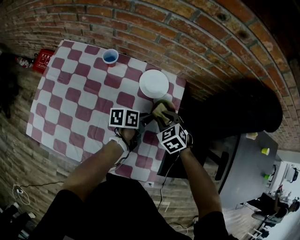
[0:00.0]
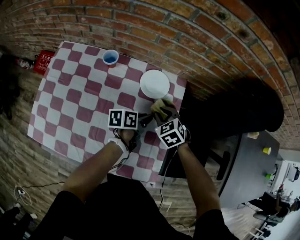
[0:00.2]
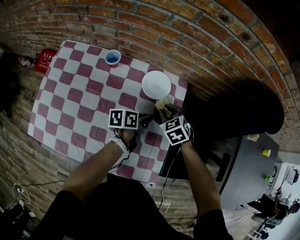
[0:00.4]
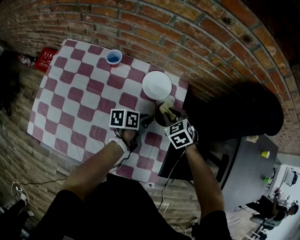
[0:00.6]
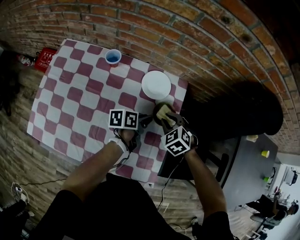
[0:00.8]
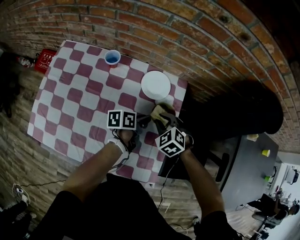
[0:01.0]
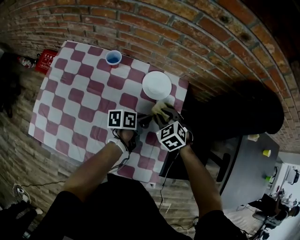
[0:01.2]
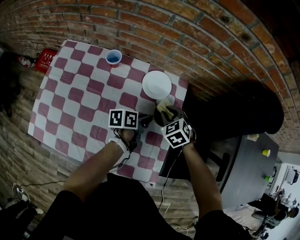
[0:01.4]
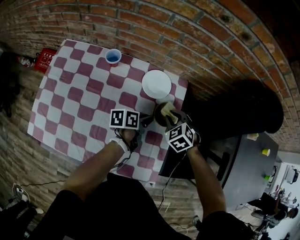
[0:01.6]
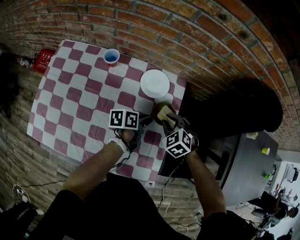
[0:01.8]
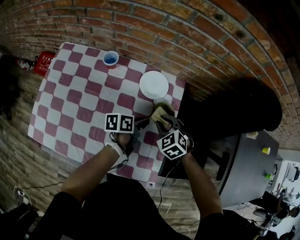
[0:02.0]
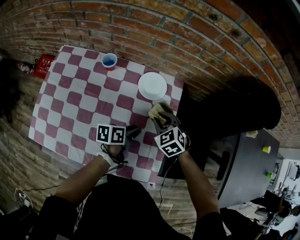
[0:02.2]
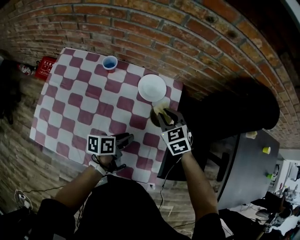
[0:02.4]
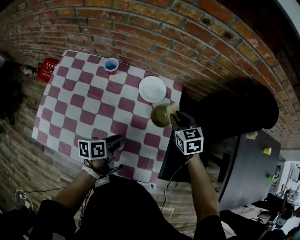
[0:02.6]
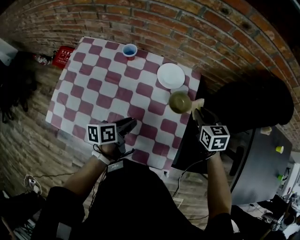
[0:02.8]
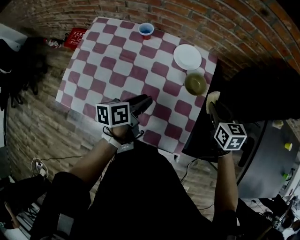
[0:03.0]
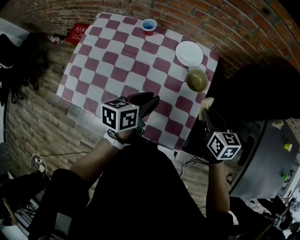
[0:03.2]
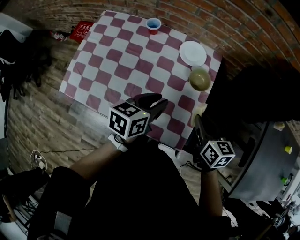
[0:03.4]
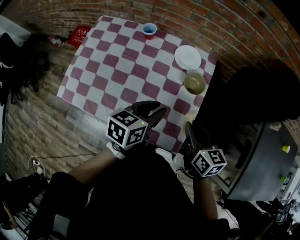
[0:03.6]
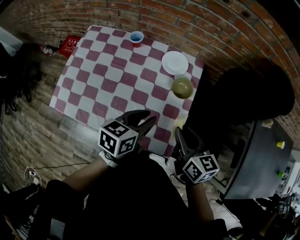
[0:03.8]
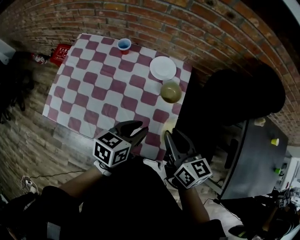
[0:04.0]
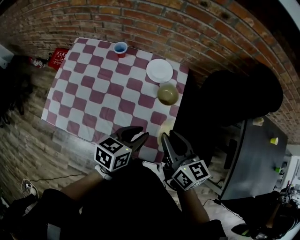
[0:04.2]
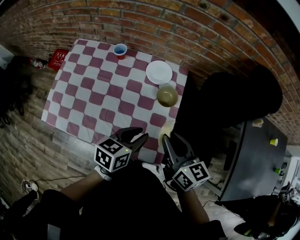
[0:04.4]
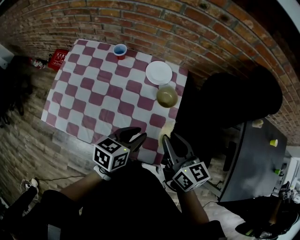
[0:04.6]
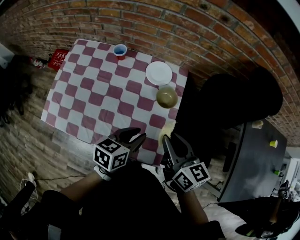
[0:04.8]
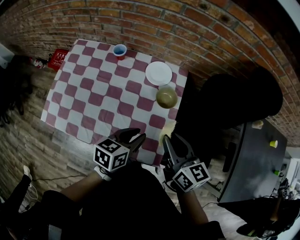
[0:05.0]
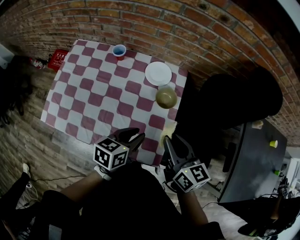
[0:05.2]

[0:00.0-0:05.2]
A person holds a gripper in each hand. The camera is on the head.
0:00.0 to 0:01.8: The grippers stay close to where they were, moving slightly.
0:01.8 to 0:03.4: The grippers both shift backward and upward by roughly 20 cm. The left gripper rotates some 30 degrees, while the right gripper twists about 60 degrees clockwise, seen from behind.
0:03.4 to 0:05.2: The right gripper moves upward, roughly 10 cm. The left gripper shifts about 5 cm to the right.

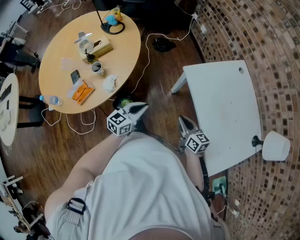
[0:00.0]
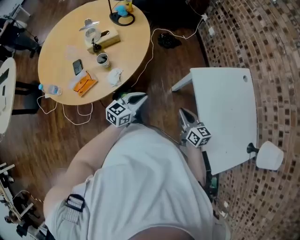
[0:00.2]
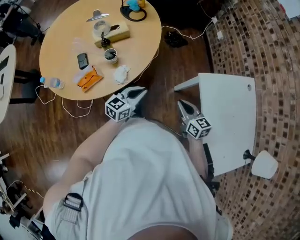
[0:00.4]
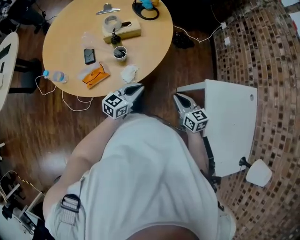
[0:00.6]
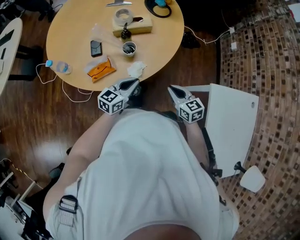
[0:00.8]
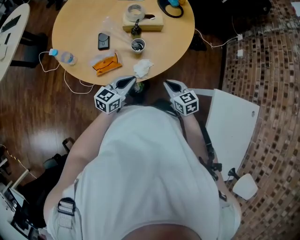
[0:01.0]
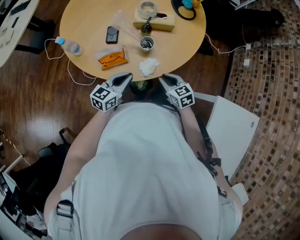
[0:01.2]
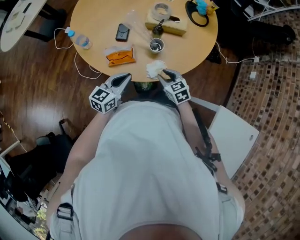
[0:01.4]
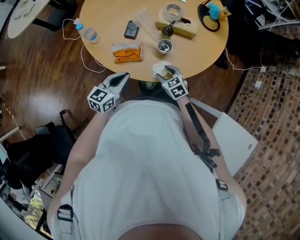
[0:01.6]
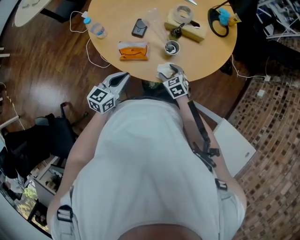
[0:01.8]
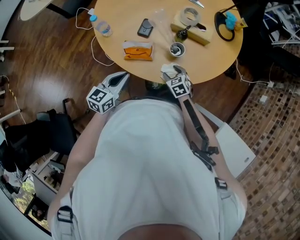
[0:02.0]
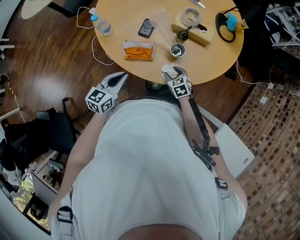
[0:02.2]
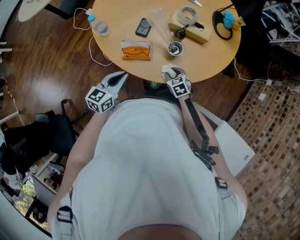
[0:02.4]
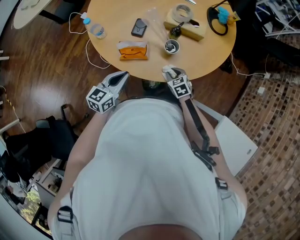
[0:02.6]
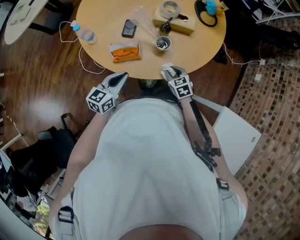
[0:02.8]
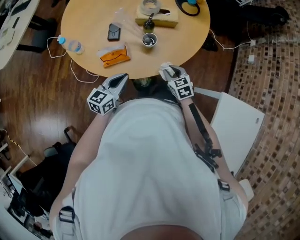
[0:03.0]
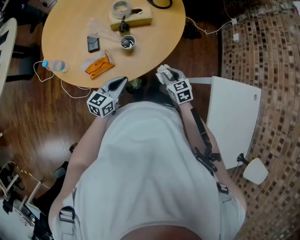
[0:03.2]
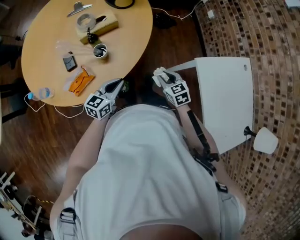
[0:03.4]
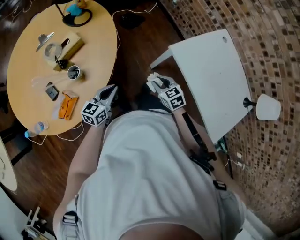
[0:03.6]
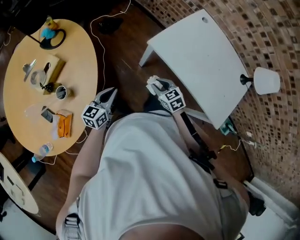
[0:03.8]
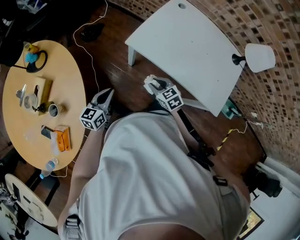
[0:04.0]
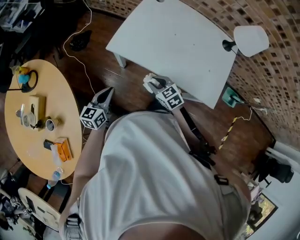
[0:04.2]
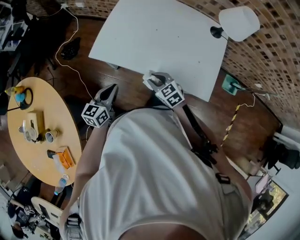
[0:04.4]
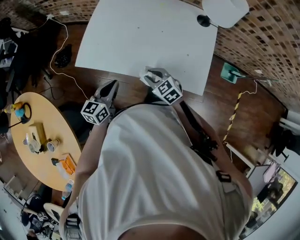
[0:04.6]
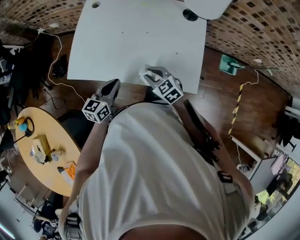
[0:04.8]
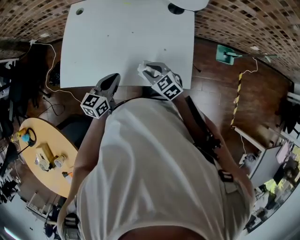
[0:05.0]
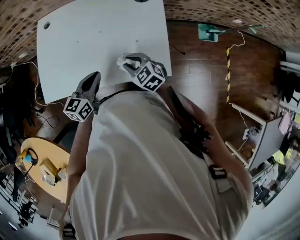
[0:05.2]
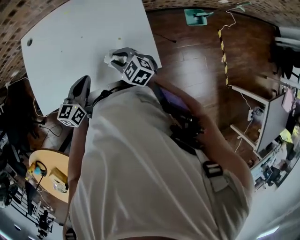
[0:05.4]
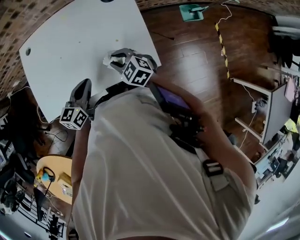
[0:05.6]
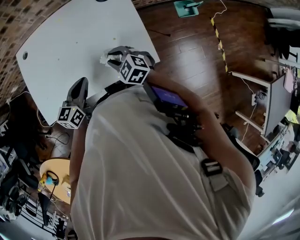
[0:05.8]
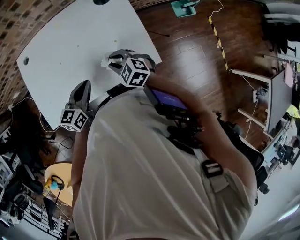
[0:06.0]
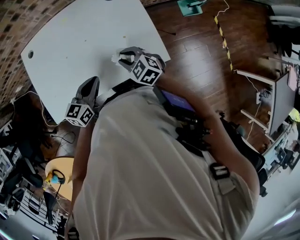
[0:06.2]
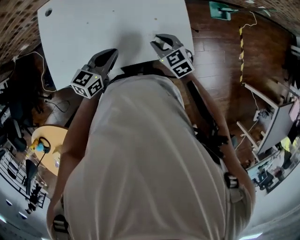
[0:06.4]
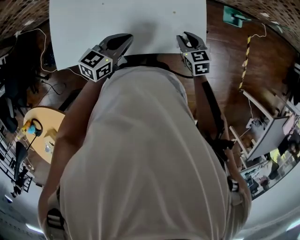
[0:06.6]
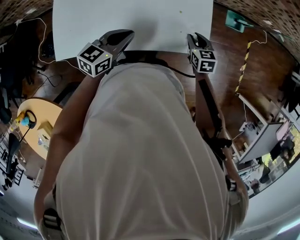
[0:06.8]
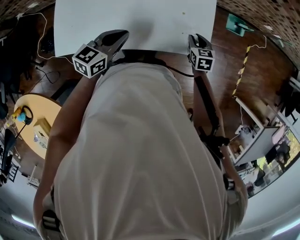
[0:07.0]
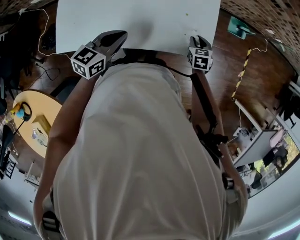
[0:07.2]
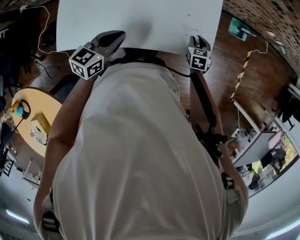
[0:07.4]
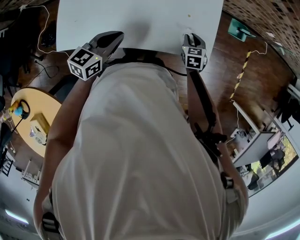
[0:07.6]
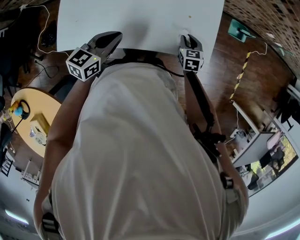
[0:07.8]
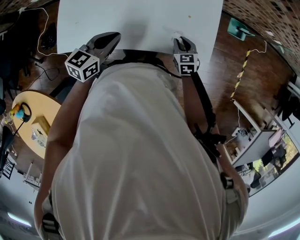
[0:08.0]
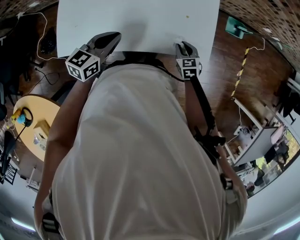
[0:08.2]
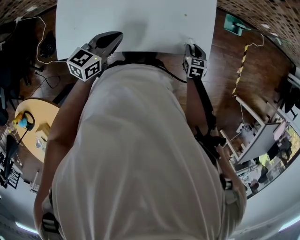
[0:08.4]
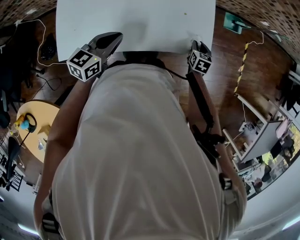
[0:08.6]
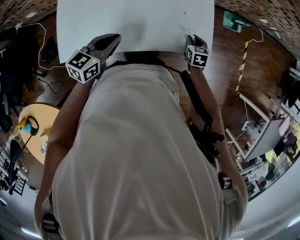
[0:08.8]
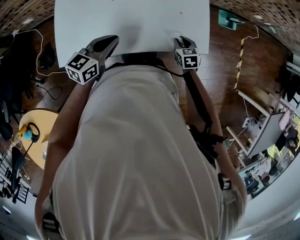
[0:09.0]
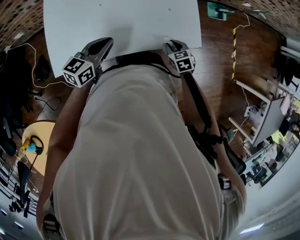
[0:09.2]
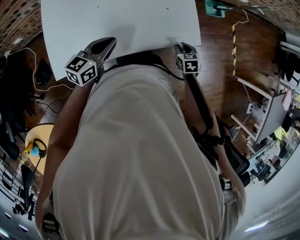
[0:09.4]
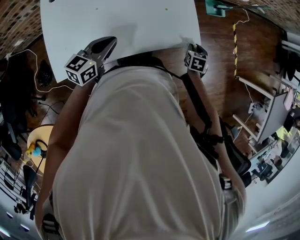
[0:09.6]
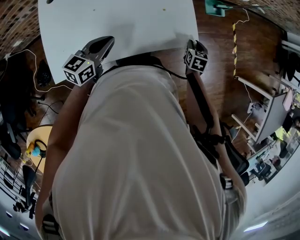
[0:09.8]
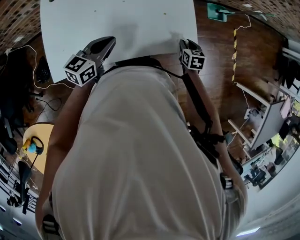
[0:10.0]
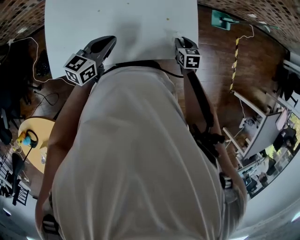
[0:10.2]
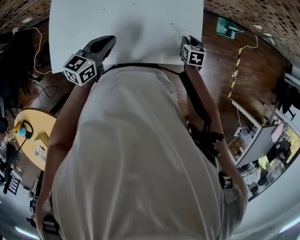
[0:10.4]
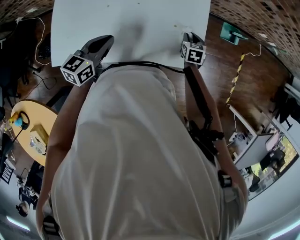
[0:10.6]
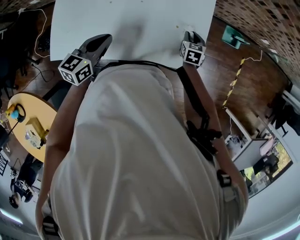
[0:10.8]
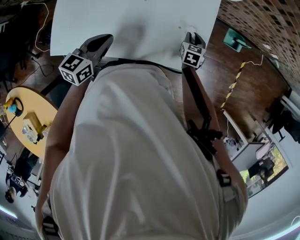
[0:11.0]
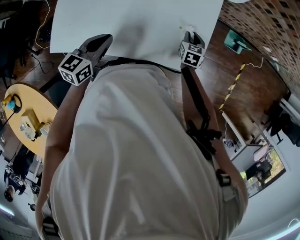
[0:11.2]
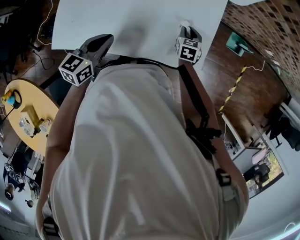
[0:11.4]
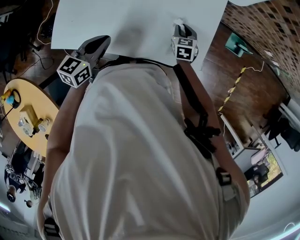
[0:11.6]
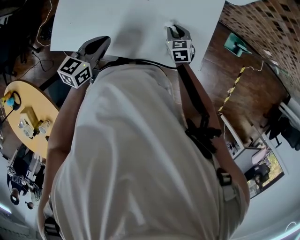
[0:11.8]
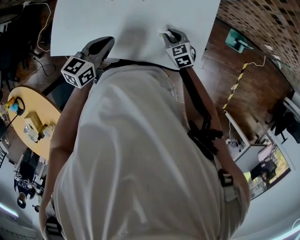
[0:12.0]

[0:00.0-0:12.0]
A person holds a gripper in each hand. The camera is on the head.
0:00.0 to 0:01.6: The left gripper shifts by approximately 35 cm, and rotates approximately 50 degrees. The right gripper moves about 50 cm, swivels some 80 degrees, and opens up.
0:01.6 to 0:03.0: The right gripper shifts about 5 cm to the right, reaches approximately 5 cm downward, then returns, rotates about 20 degrees, and closes up.
0:03.0 to 0:04.4: The pair of grippers is taken approximately 50 cm. The right gripper changes its angle by approximately 70 degrees; the left gripper changes its angle by approximately 70 degrees.
0:04.4 to 0:06.0: The left gripper shifts by approximately 30 cm, and rotates some 40 degrees. Meanwhile the right gripper ends up some 25 cm from where it was, and rotates about 20 degrees.
0:06.0 to 0:07.6: The left gripper moves to the left, approximately 5 cm, while the right gripper goes some 15 cm downward and to the right, and rotates about 30 degrees.
0:07.6 to 0:09.0: The right gripper moves left and right over approximately 10 cm, changing direction 2 times.
0:09.0 to 0:10.4: The left gripper heads forward, covering some 5 cm; the right gripper goes some 15 cm forward and to the right.
0:10.4 to 0:12.0: The right gripper ends up some 15 cm from where it was, and turns by approximately 40 degrees.

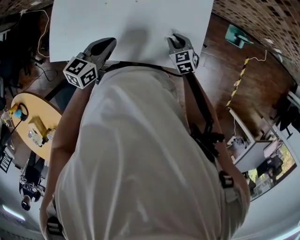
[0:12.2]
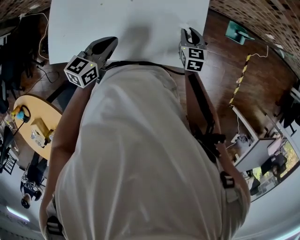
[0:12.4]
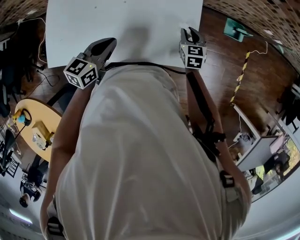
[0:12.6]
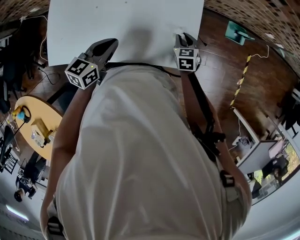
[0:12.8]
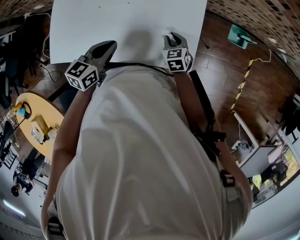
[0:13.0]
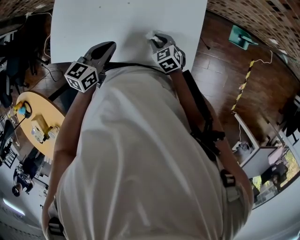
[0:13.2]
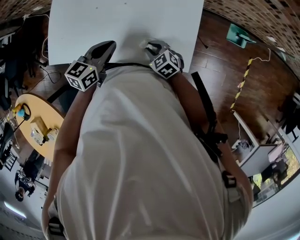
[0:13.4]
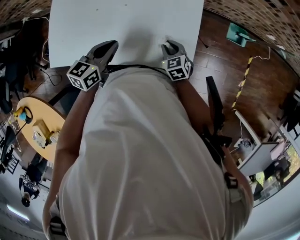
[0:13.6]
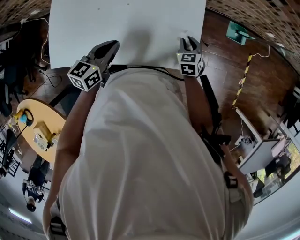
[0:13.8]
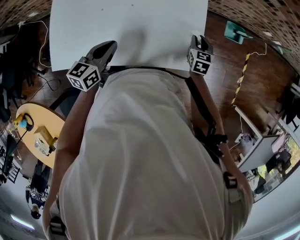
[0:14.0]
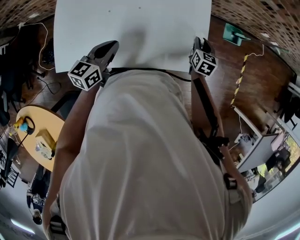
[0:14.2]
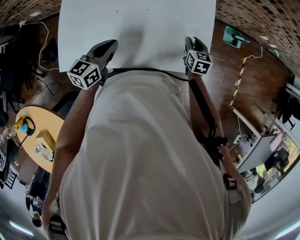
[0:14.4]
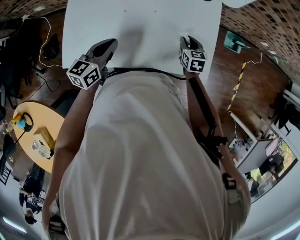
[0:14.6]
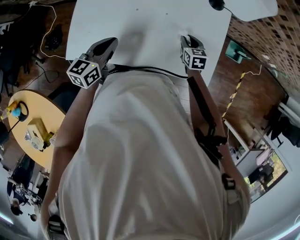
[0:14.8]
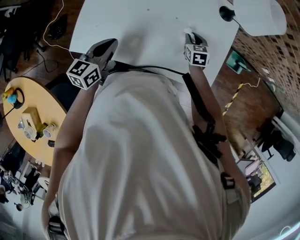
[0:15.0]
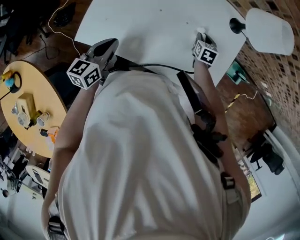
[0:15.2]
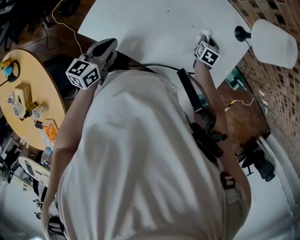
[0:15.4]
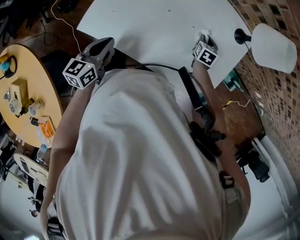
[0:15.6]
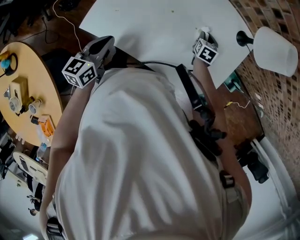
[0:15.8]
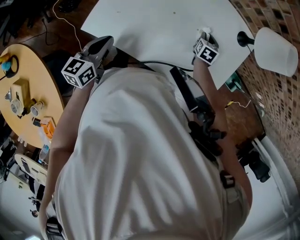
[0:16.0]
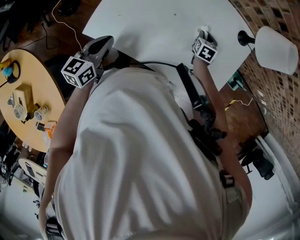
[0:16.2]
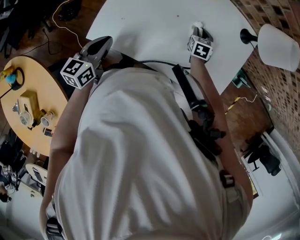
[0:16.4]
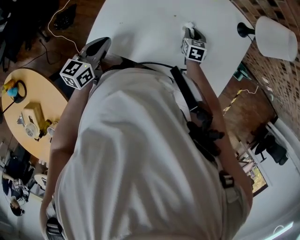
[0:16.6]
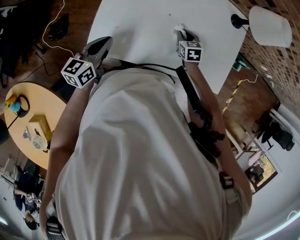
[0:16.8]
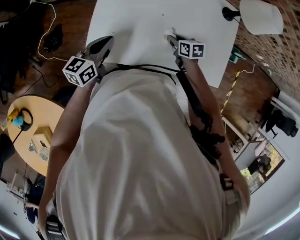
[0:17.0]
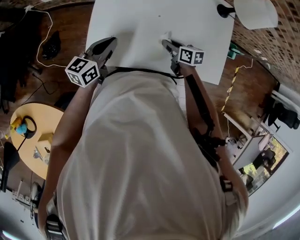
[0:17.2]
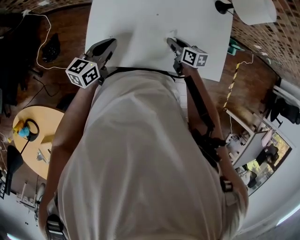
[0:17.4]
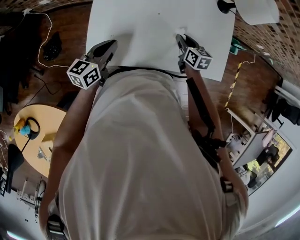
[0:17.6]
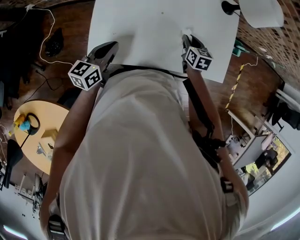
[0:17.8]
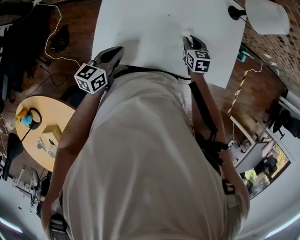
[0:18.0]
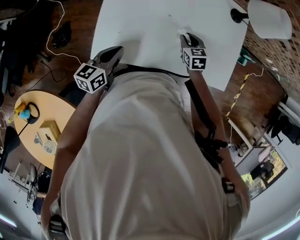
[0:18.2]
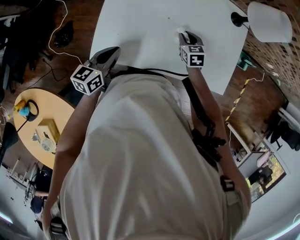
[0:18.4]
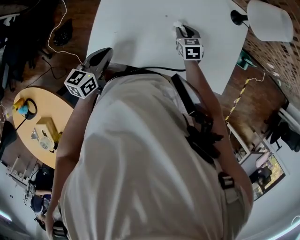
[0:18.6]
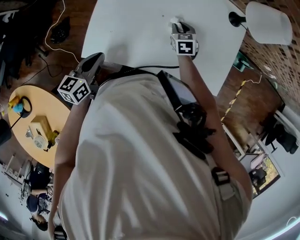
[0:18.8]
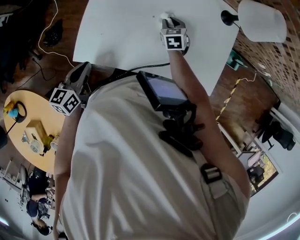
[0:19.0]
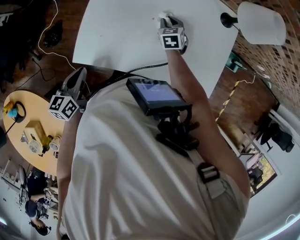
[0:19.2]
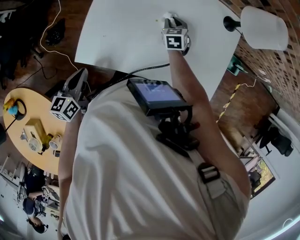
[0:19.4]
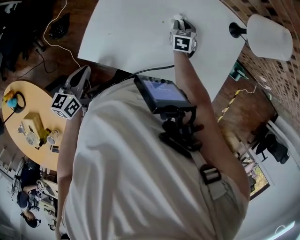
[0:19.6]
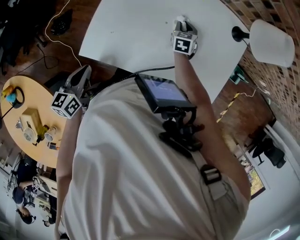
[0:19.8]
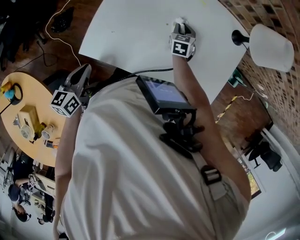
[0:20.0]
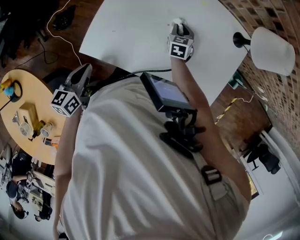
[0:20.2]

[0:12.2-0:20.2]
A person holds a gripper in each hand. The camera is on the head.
0:12.2 to 0:13.8: The right gripper shifts by about 10 cm, and swivels some 20 degrees.
0:13.8 to 0:15.4: The right gripper shifts approximately 25 cm to the left and forward; the left gripper goes roughly 20 cm to the left, and rotates approximately 30 degrees.
0:15.4 to 0:17.0: The left gripper moves to the left and forward, approximately 10 cm, and rotates about 20 degrees. The right gripper travels to the left and backward by some 20 cm, and swivels roughly 30 degrees.
0:17.0 to 0:18.6: The right gripper heads forward, covering some 5 cm, and turns by approximately 30 degrees.
0:18.6 to 0:20.2: The left gripper travels backward by approximately 10 cm, while the right gripper heads forward, covering about 5 cm.
